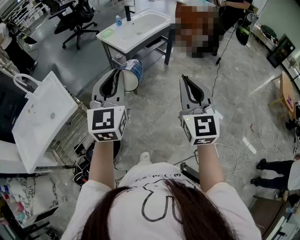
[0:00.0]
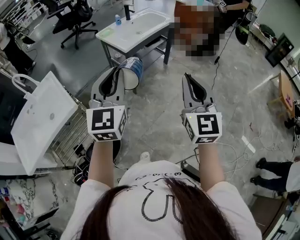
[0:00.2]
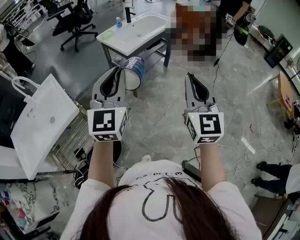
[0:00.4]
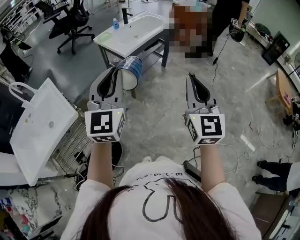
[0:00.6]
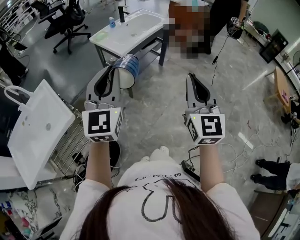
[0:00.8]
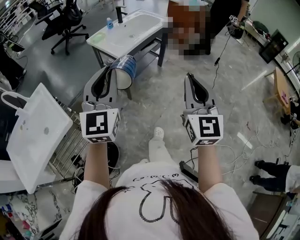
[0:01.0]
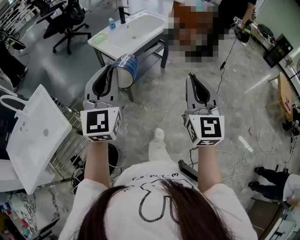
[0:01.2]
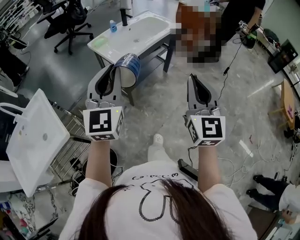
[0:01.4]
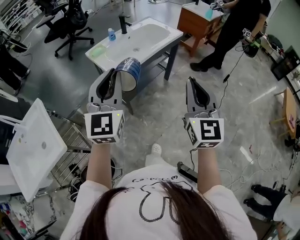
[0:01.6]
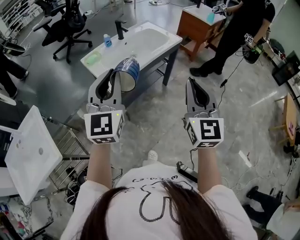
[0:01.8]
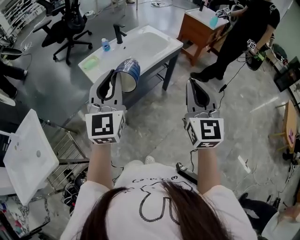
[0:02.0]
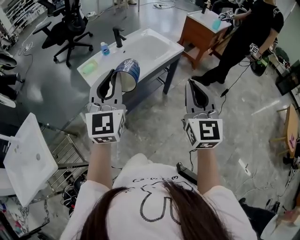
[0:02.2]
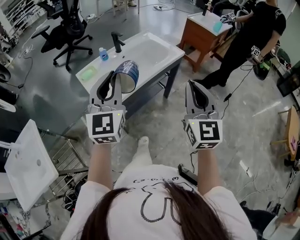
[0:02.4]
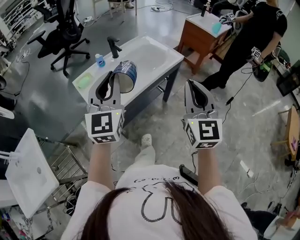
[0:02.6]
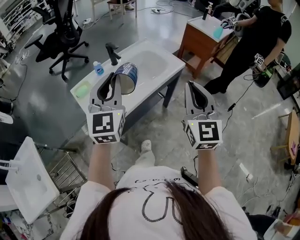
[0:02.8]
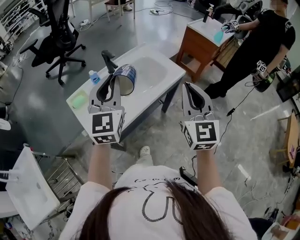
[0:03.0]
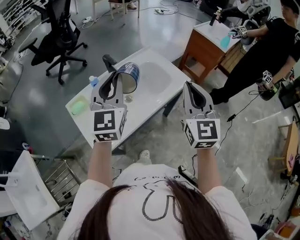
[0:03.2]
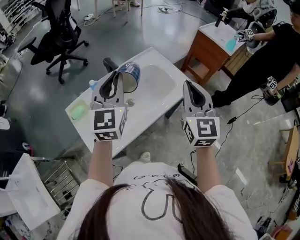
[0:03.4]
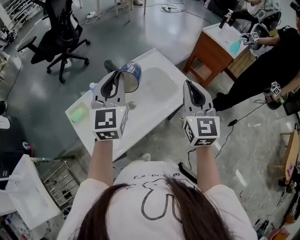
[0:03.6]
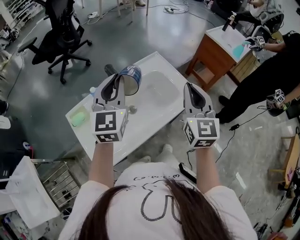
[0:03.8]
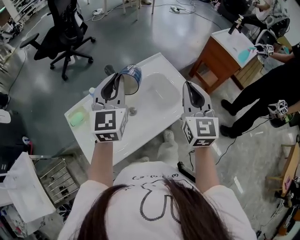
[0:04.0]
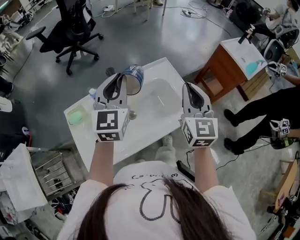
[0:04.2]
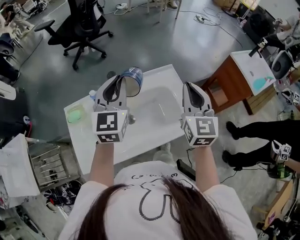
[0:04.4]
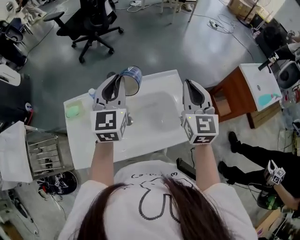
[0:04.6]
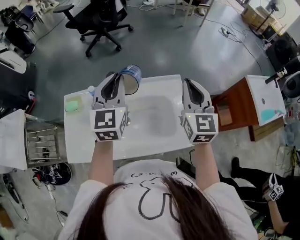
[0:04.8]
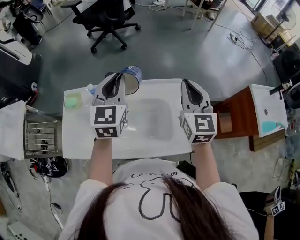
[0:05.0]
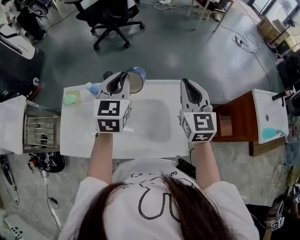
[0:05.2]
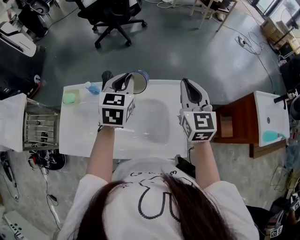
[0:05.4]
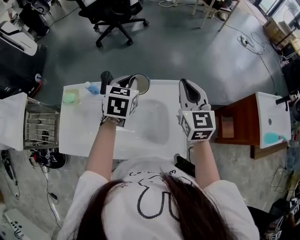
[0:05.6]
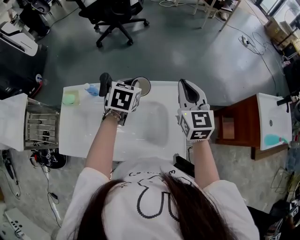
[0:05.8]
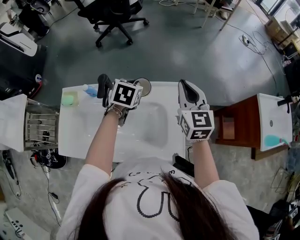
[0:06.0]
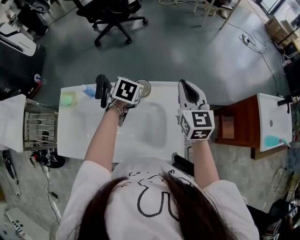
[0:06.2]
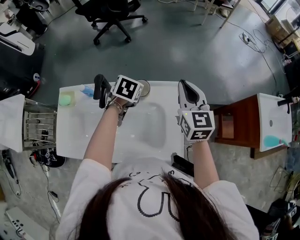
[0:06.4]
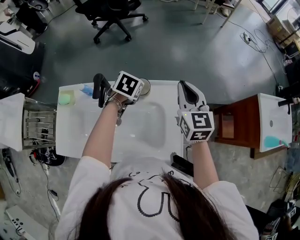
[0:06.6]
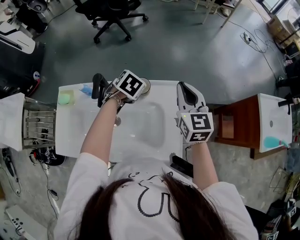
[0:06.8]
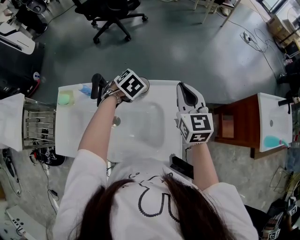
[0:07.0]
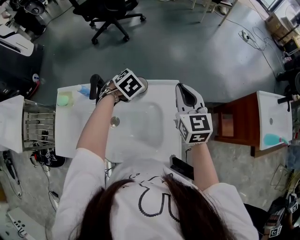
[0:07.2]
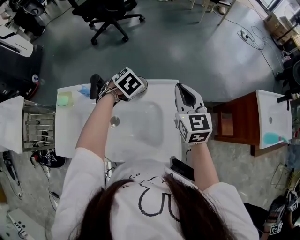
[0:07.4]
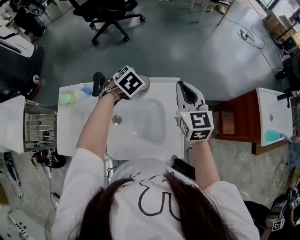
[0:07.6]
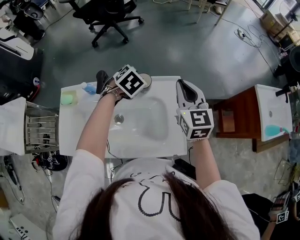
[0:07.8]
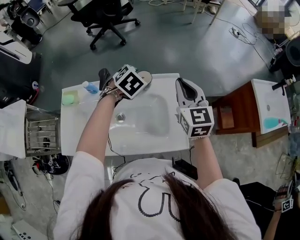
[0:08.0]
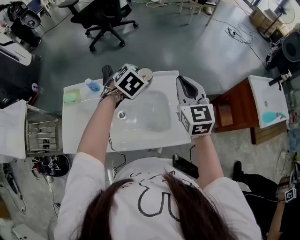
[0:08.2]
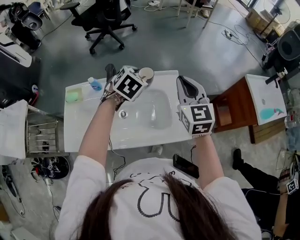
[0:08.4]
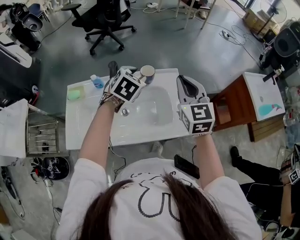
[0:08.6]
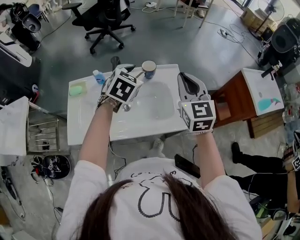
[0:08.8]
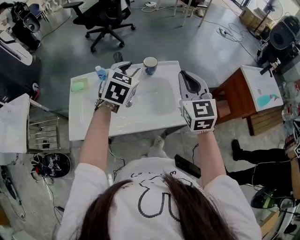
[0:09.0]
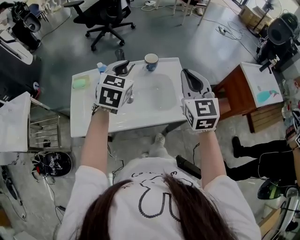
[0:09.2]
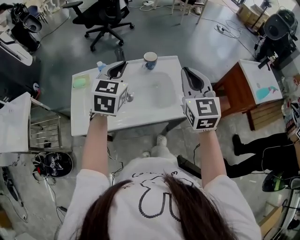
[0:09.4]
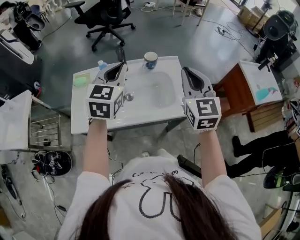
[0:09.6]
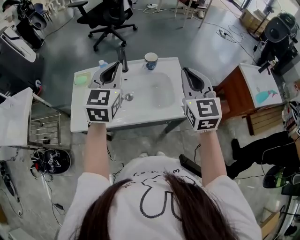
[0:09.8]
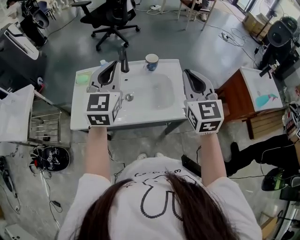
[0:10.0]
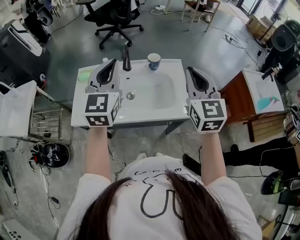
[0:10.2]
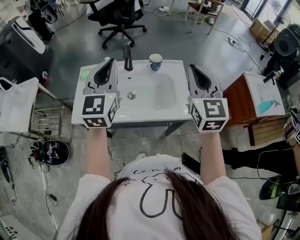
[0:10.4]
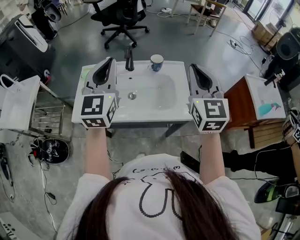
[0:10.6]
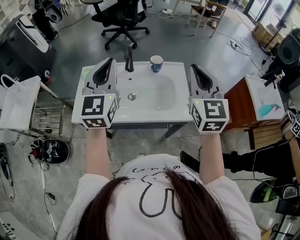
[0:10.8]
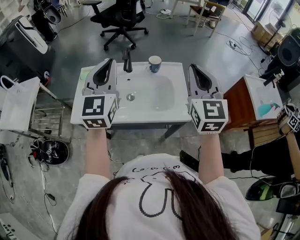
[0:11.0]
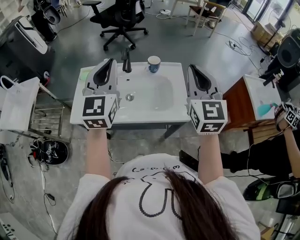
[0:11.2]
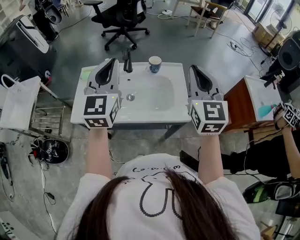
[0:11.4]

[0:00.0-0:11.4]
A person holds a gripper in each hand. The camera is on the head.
0:00.0 to 0:01.4: Both grippers move forward, roughly 20 cm.
0:01.4 to 0:02.8: Both grippers are carried forward, some 40 cm.
0:02.8 to 0:04.2: Both grippers move forward, roughly 35 cm.
0:04.2 to 0:05.6: The left gripper moves roughly 20 cm, and tilts its fingers about 30 degrees downward. The right gripper changes place by about 25 cm, and changes its angle by approximately 30 degrees.
0:05.6 to 0:07.2: The right gripper changes place by roughly 5 cm, while the left gripper travels downward by about 10 cm, and points its fingers approximately 30 degrees further downward.
0:07.2 to 0:08.6: The left gripper heads upward and backward, covering approximately 20 cm, turns by roughly 20 degrees, and opens. The right gripper shifts approximately 15 cm backward and upward.
0:08.6 to 0:10.0: The left gripper moves backward, upward and to the left, roughly 25 cm, angles its fingers upward, by about 40 degrees, and closes. The right gripper heads backward and upward, covering some 15 cm.
0:10.0 to 0:11.4: The grippers move only a little.

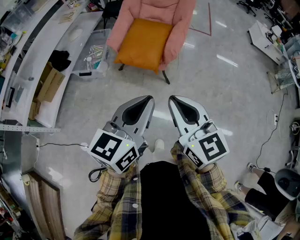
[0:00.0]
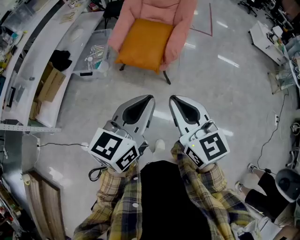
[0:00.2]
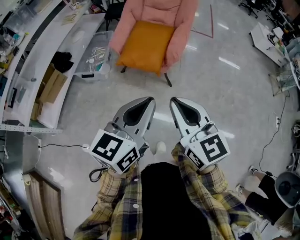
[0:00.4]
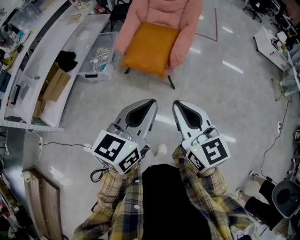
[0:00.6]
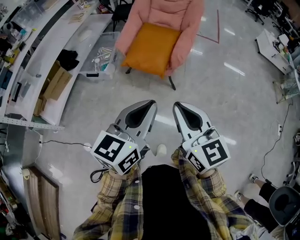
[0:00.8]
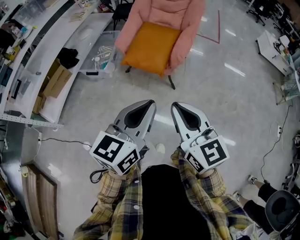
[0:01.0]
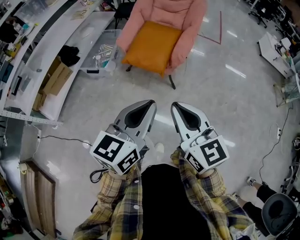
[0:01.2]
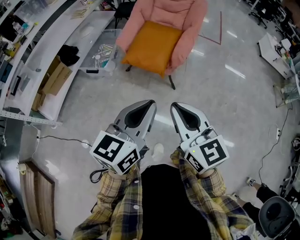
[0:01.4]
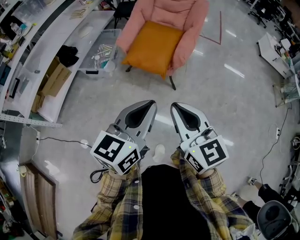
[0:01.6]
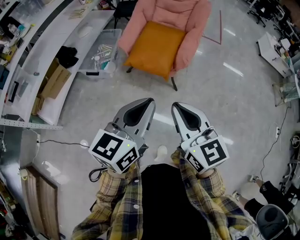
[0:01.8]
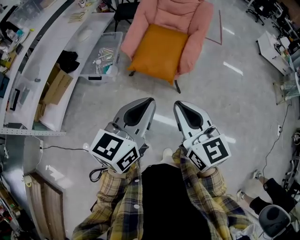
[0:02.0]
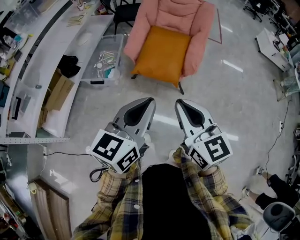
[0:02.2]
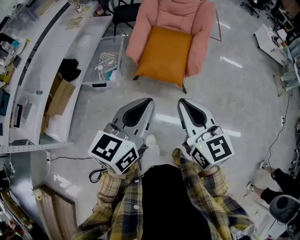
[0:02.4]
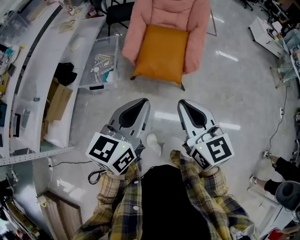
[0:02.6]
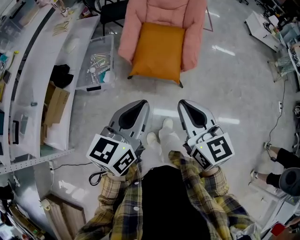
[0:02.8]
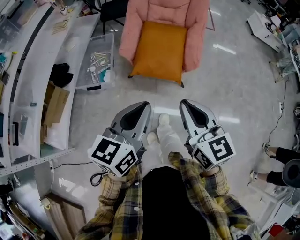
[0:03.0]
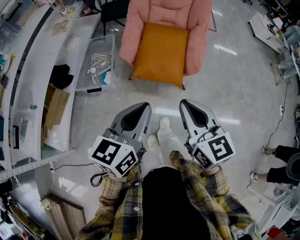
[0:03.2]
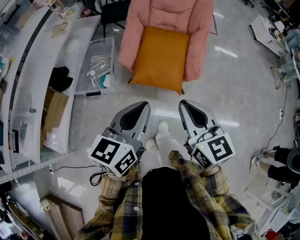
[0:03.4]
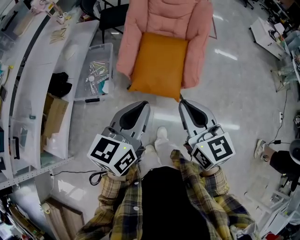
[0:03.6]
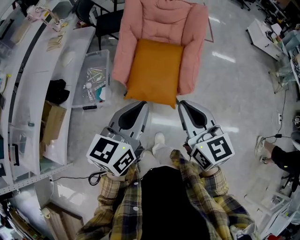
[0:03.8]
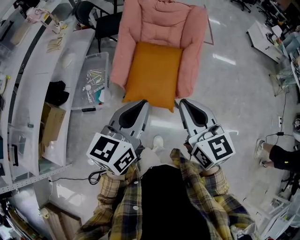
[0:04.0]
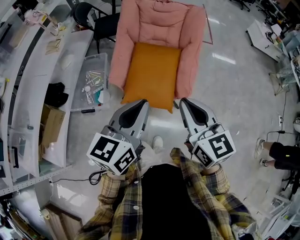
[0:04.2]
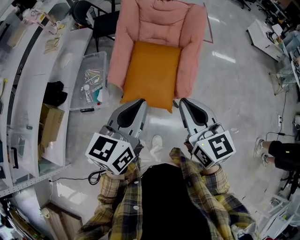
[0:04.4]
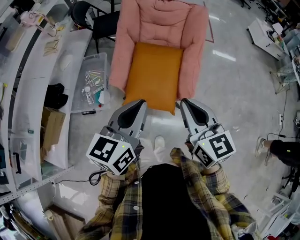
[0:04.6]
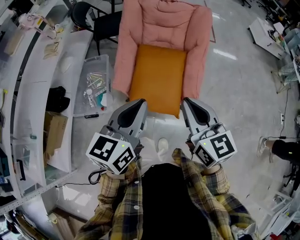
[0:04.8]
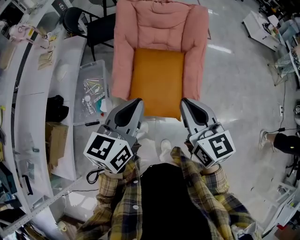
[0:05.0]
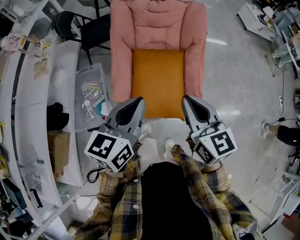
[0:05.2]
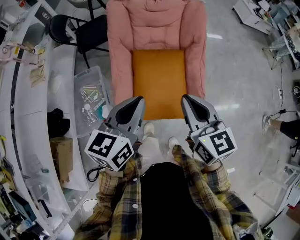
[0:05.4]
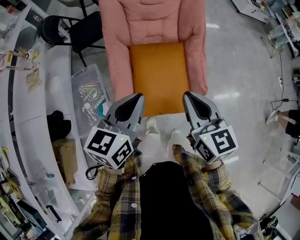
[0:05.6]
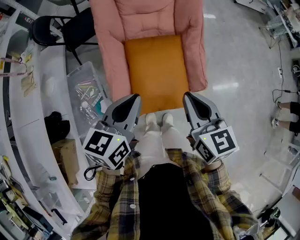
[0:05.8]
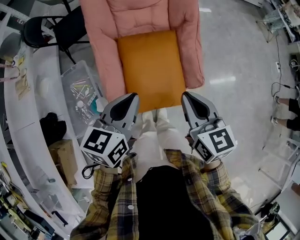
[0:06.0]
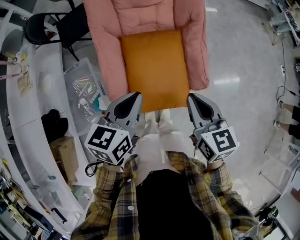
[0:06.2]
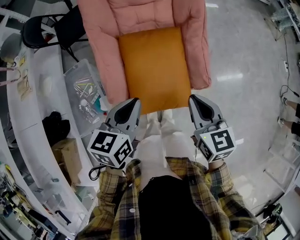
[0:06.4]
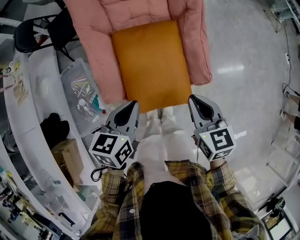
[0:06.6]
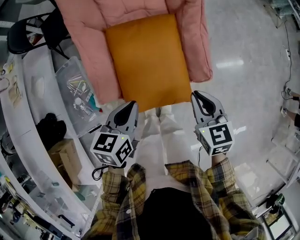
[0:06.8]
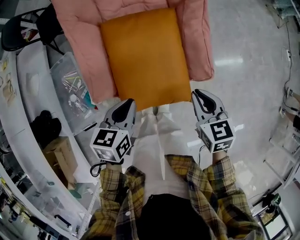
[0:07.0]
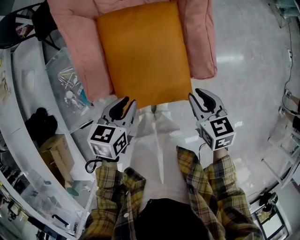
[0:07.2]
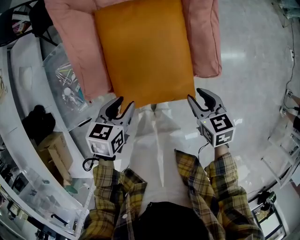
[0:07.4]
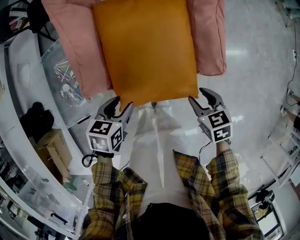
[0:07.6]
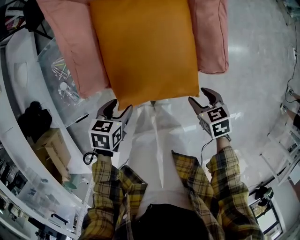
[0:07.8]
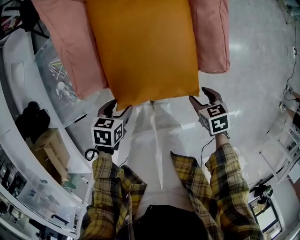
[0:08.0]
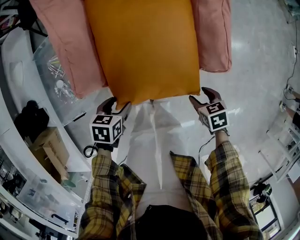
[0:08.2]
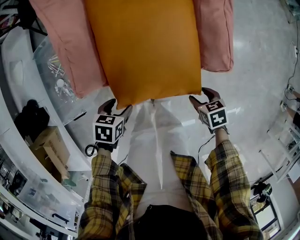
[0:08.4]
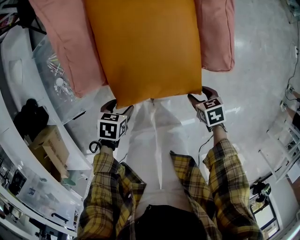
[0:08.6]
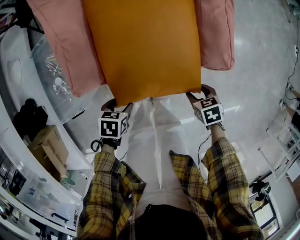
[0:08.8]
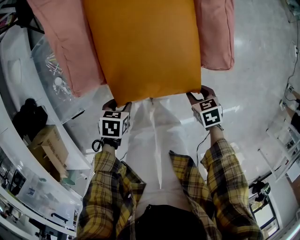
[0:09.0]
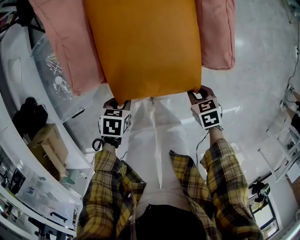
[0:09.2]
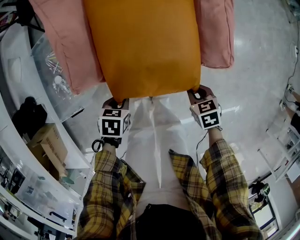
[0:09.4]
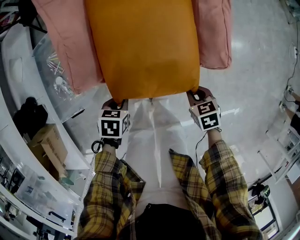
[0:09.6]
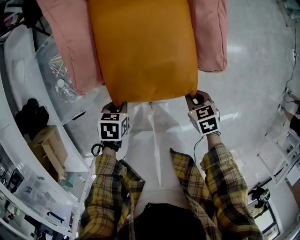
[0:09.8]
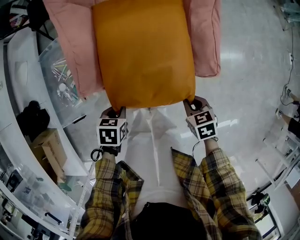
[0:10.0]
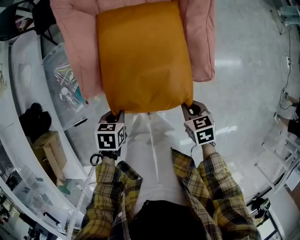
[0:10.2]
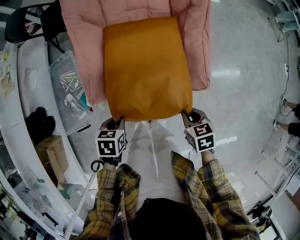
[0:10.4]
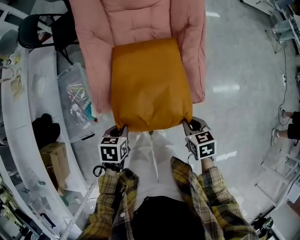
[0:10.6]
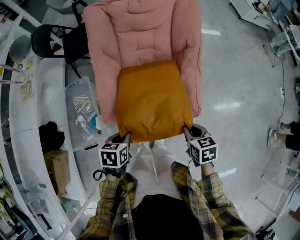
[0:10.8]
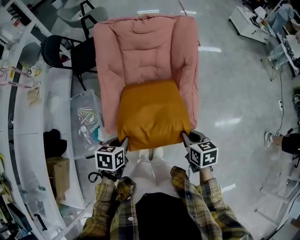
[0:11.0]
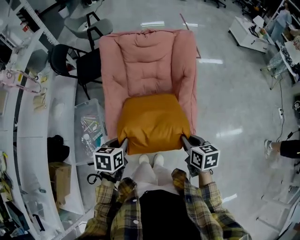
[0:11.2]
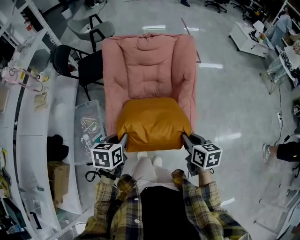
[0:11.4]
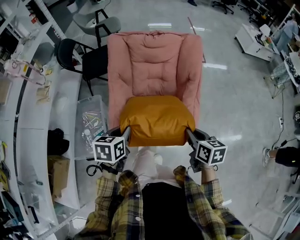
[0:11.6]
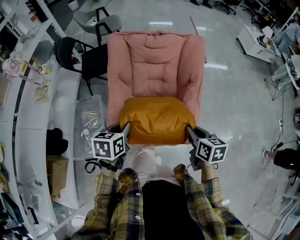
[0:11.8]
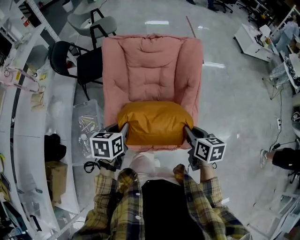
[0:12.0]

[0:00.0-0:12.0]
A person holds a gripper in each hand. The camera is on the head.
0:00.0 to 0:01.6: There are only small adjustments of the grippers.
0:01.6 to 0:03.0: The two grippers go approximately 20 cm to the left and forward.
0:03.0 to 0:04.4: Both grippers travel together forward, approximately 20 cm.
0:04.4 to 0:06.0: The right gripper heads forward, downward and to the left, covering roughly 20 cm, and rotates approximately 30 degrees. The left gripper shifts some 25 cm forward, to the left and downward, and rotates approximately 20 degrees.
0:06.0 to 0:07.6: The grippers both shift downward by about 35 cm. The left gripper tips its fingers downward by about 30 degrees, and opens up. The right gripper points its fingers some 30 degrees further downward, and opens.
0:07.6 to 0:09.0: Both grippers move downward, about 10 cm.
0:09.0 to 0:10.4: The two grippers go some 15 cm upward. The left gripper closes its fingers. The right gripper closes up.
0:10.4 to 0:12.0: The two grippers go roughly 30 cm upward and forward. The left gripper changes its angle by approximately 20 degrees; the right gripper turns by some 20 degrees.
